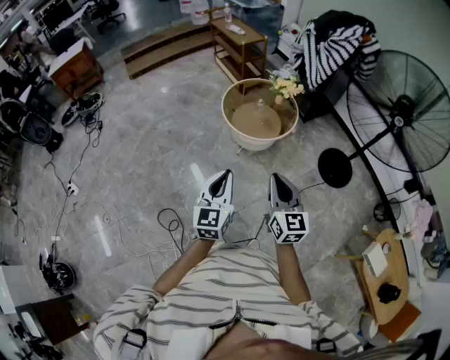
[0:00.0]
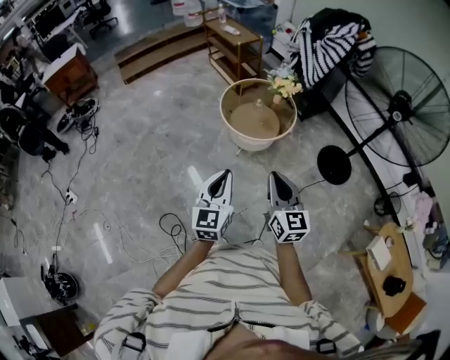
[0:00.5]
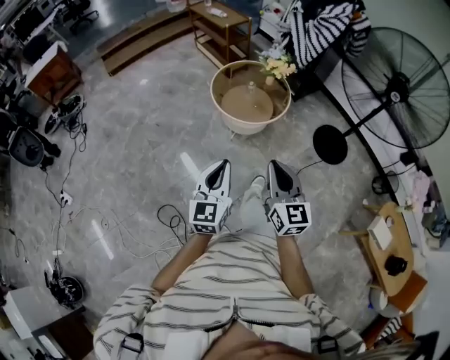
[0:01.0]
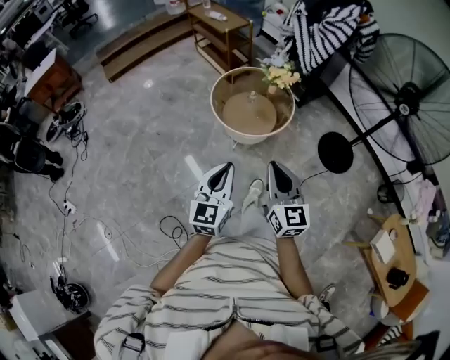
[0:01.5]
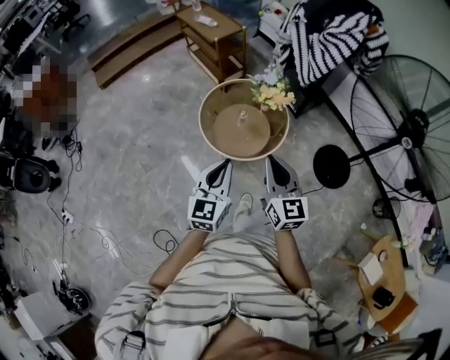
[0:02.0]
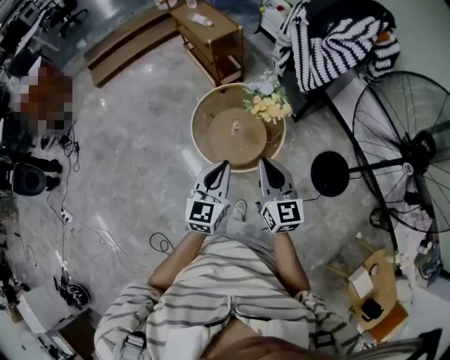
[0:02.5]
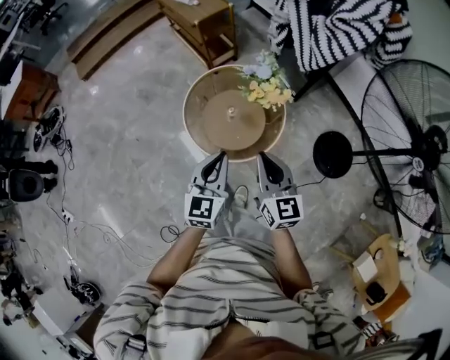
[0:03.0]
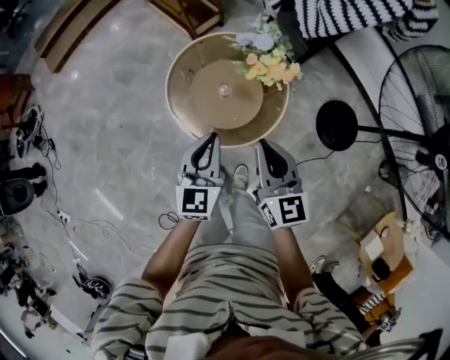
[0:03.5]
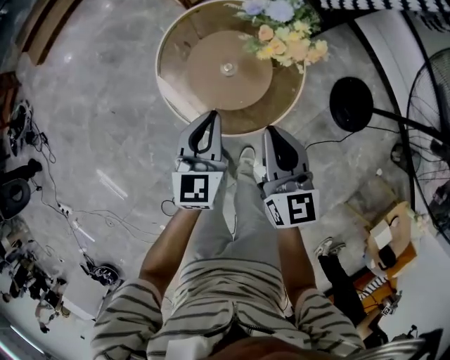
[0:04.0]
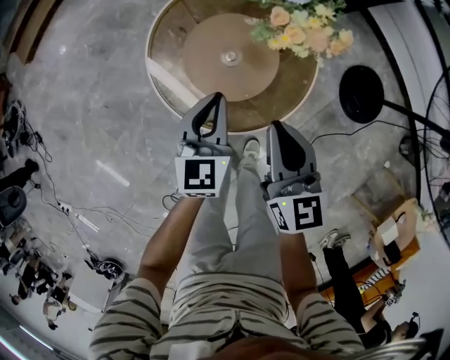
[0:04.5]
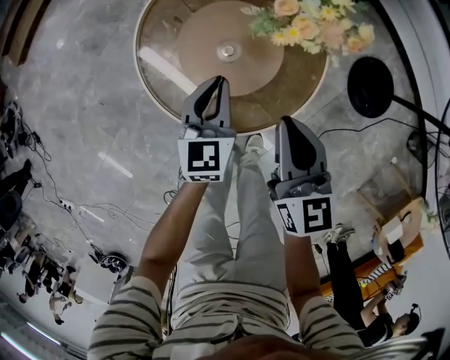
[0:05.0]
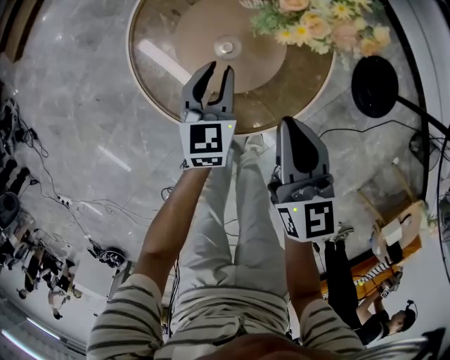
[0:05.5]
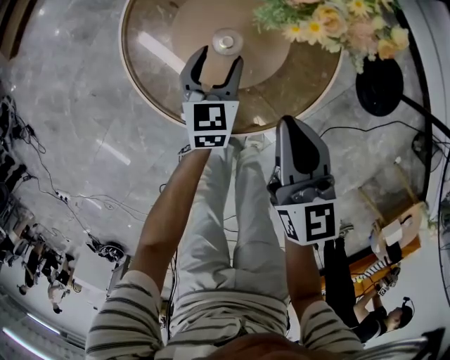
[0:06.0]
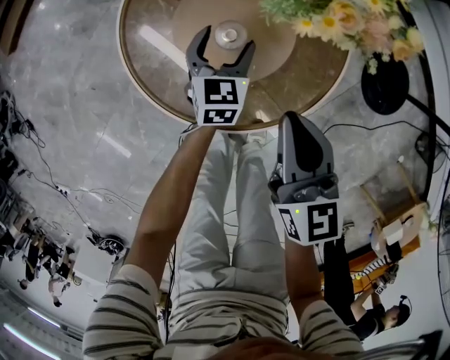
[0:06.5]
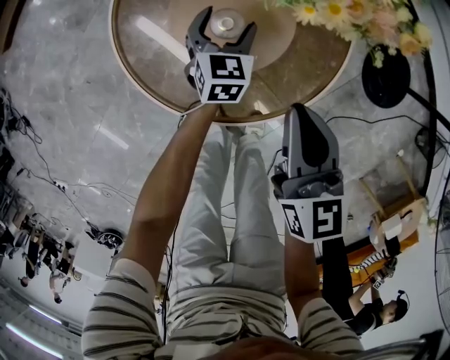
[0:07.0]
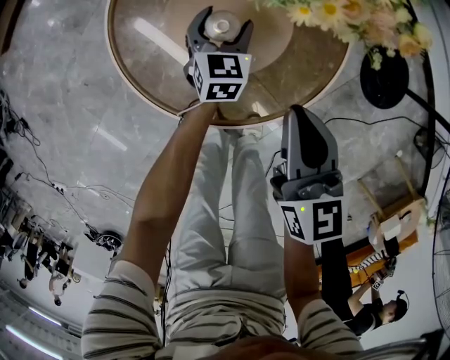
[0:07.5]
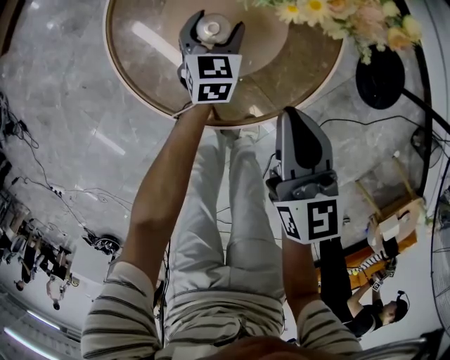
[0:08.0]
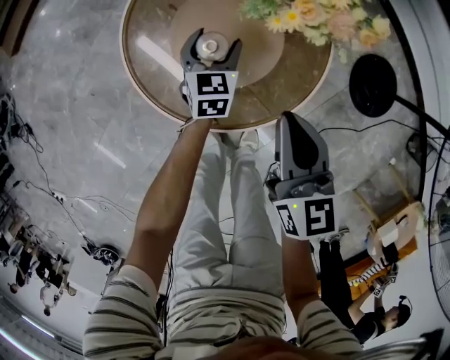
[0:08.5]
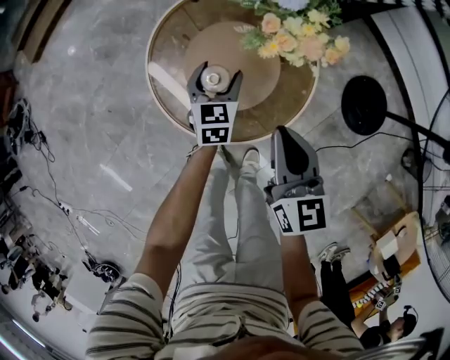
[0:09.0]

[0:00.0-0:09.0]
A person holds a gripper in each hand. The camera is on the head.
0:00.0 to 0:02.0: The two grippers go some 35 cm forward.
0:02.0 to 0:04.5: Both grippers travel together downward and forward, about 40 cm.
0:04.5 to 0:07.0: The left gripper goes about 30 cm downward and forward, and opens. Meanwhile the right gripper goes roughly 10 cm downward.
0:07.0 to 0:09.0: The two grippers go about 10 cm upward.

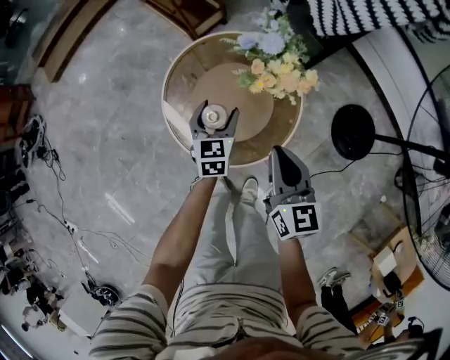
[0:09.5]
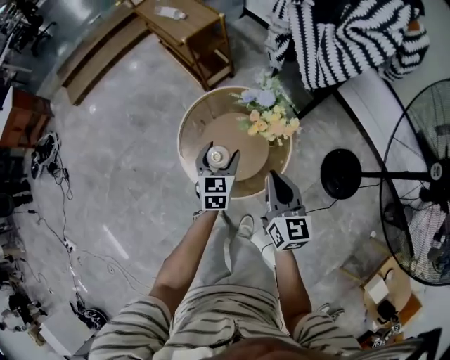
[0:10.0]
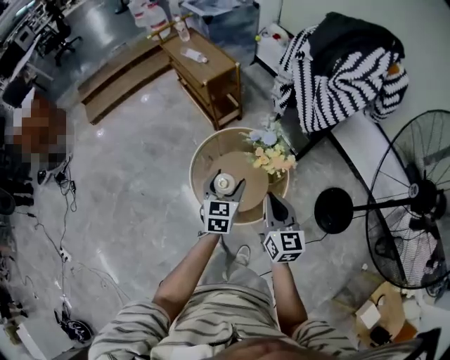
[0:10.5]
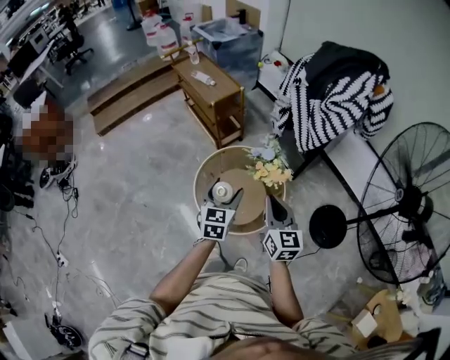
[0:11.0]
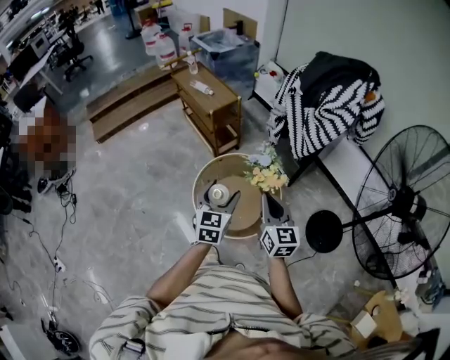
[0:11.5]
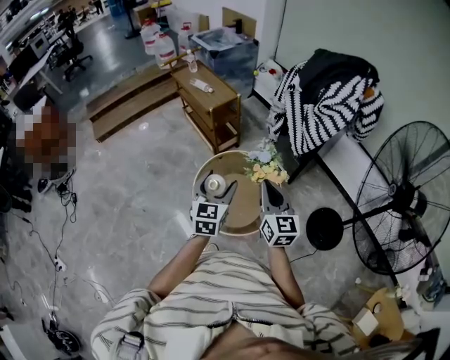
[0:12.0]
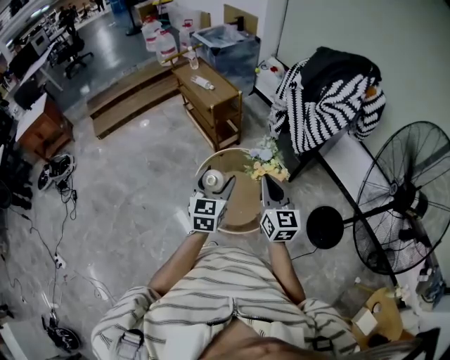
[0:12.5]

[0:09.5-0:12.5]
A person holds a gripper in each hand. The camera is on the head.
0:09.5 to 0:11.0: The two grippers go about 30 cm upward.
0:11.0 to 0:12.5: The two grippers go some 5 cm upward.

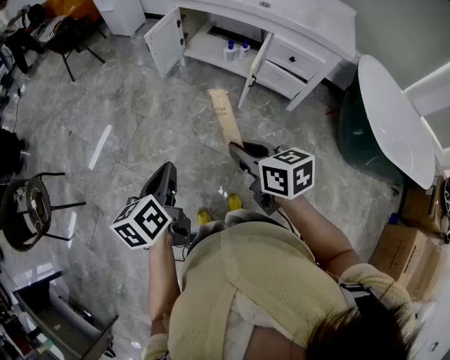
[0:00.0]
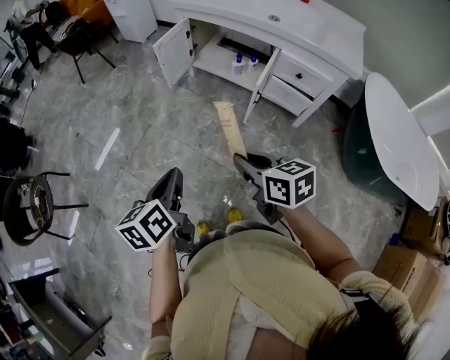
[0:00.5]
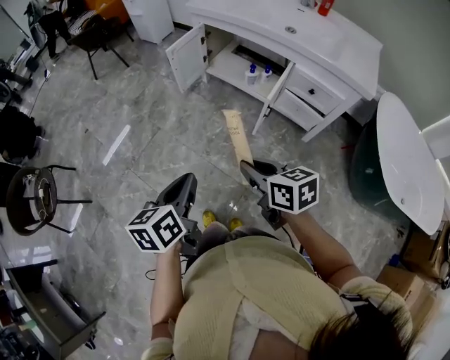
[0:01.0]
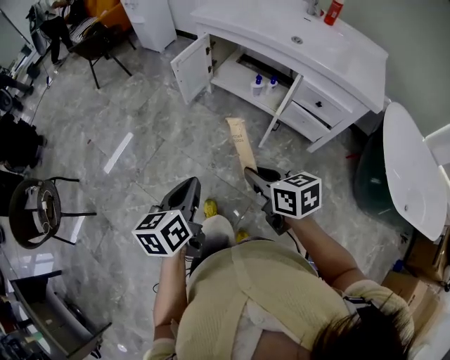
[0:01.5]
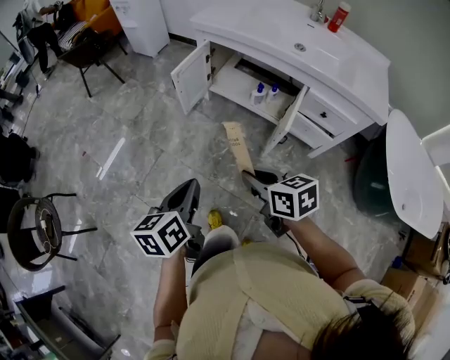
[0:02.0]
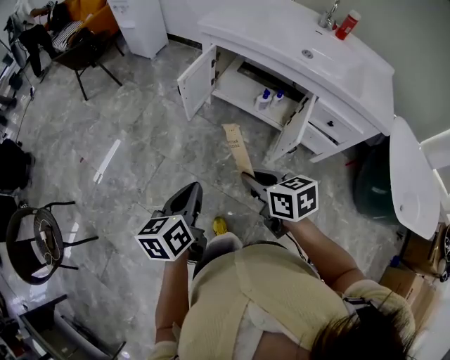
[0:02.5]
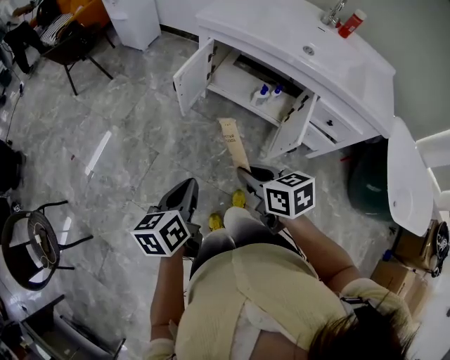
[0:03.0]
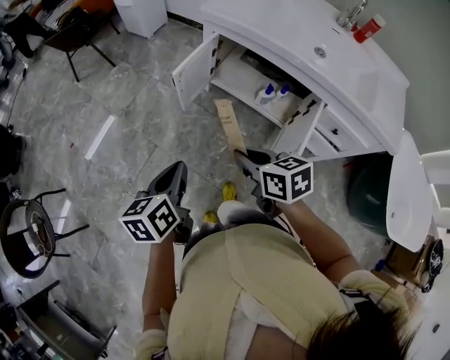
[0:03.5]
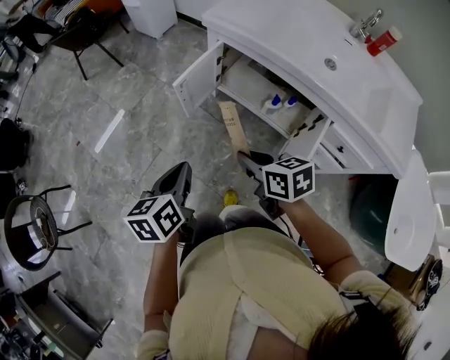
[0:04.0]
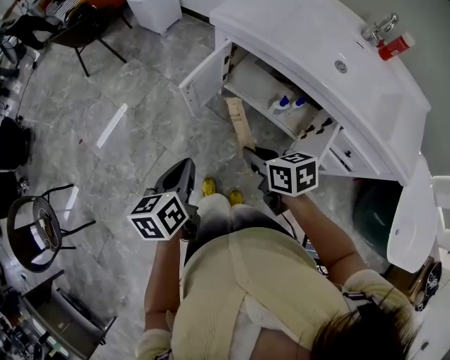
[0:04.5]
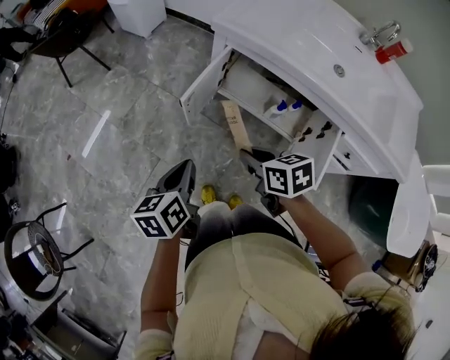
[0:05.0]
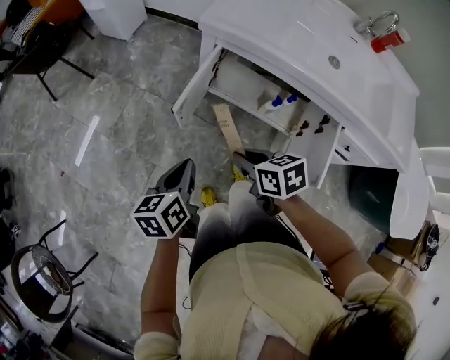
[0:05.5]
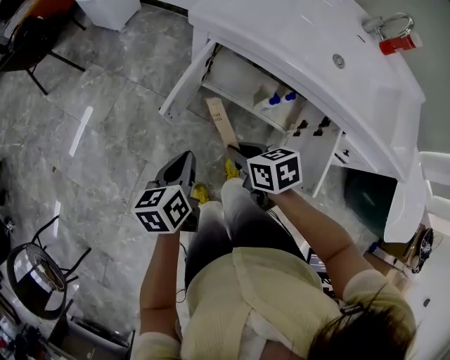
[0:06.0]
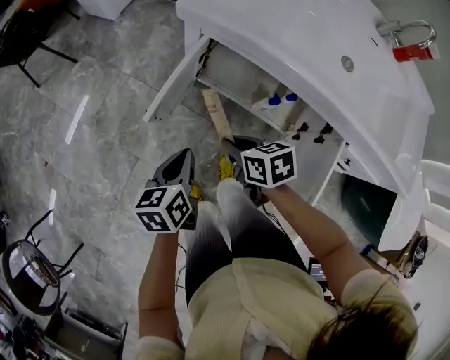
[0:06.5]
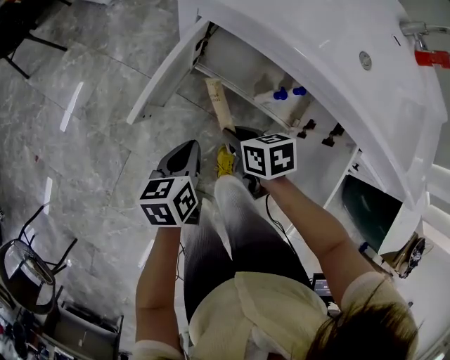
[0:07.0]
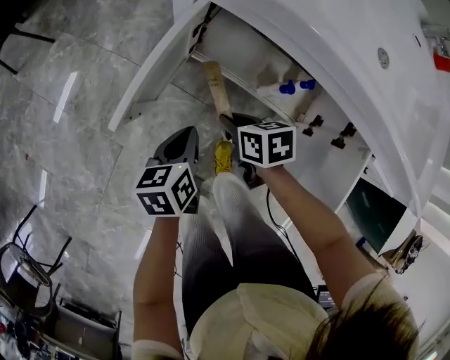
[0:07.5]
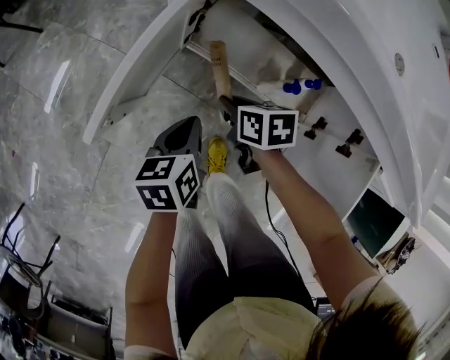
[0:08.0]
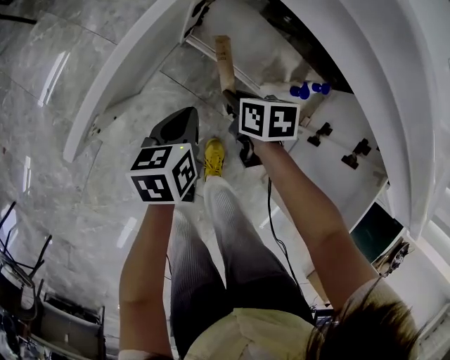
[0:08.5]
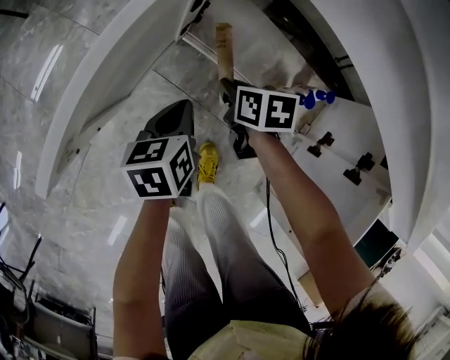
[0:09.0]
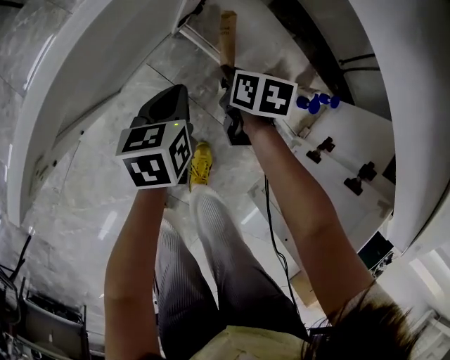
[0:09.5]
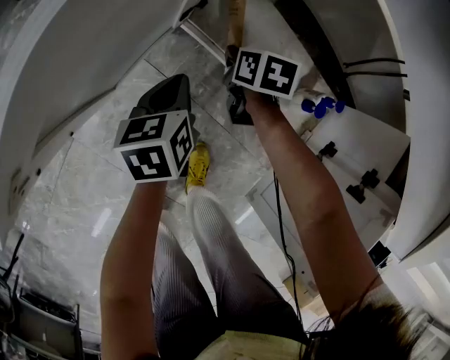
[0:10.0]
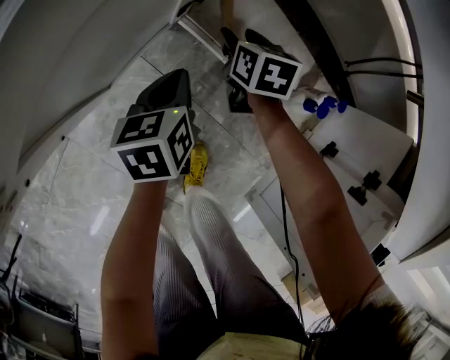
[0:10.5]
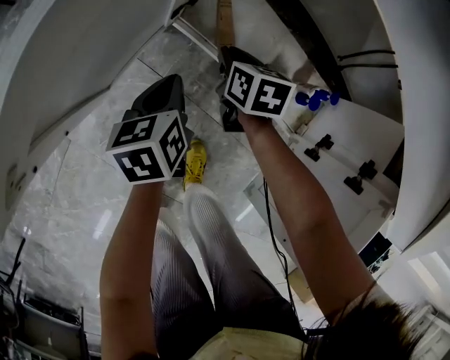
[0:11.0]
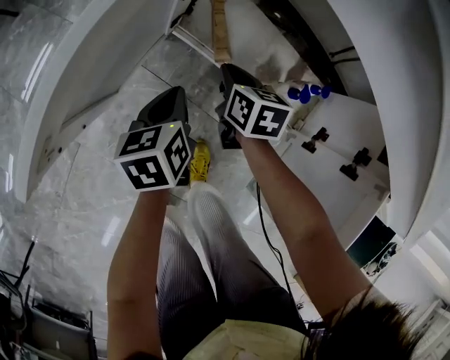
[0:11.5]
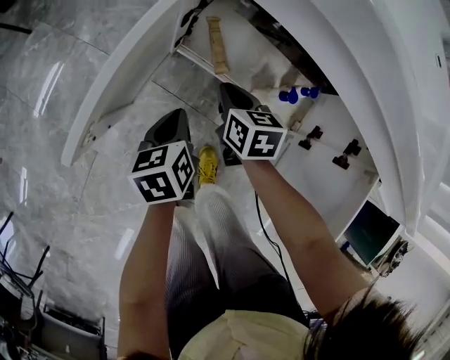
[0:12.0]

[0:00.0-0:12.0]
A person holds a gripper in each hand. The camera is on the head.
0:00.0 to 0:02.0: The two grippers go roughly 20 cm forward.
0:02.0 to 0:04.0: Both grippers move forward, some 25 cm.
0:04.0 to 0:06.0: Both grippers move forward and downward, some 20 cm.
0:06.0 to 0:08.0: The left gripper goes approximately 30 cm downward, to the right and forward; the right gripper heads downward and forward, covering about 30 cm.
0:08.0 to 0:10.0: The grippers both shift downward and forward by roughly 20 cm.
0:10.0 to 0:12.0: The right gripper goes some 15 cm upward and backward, and opens, then closes again. The left gripper shifts approximately 10 cm upward and backward.

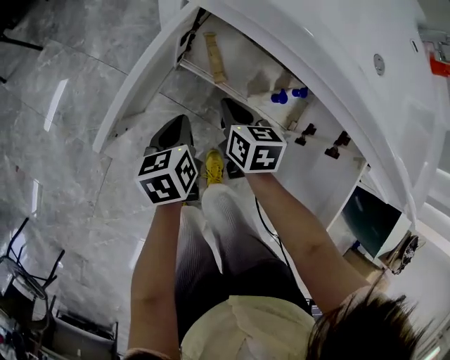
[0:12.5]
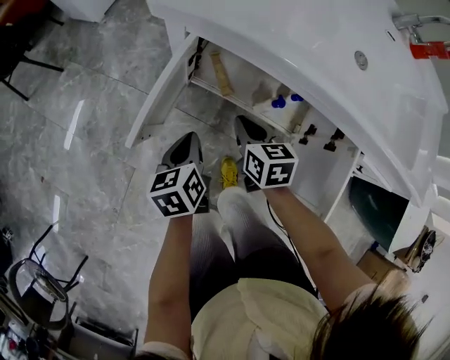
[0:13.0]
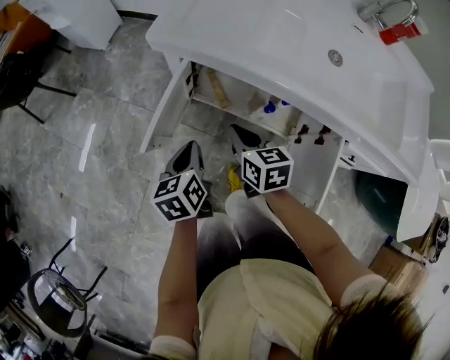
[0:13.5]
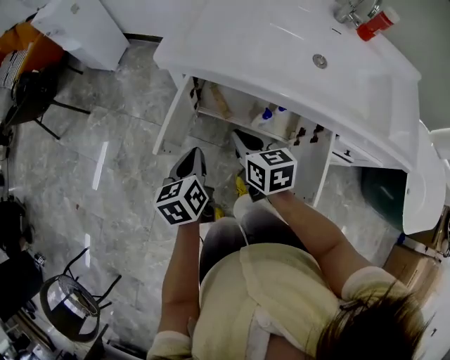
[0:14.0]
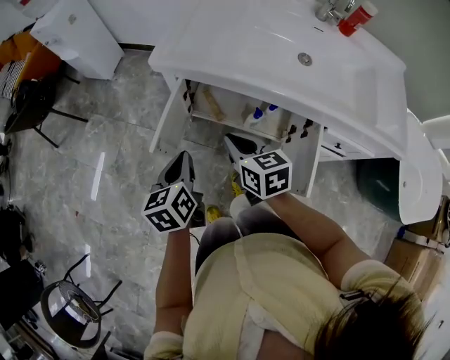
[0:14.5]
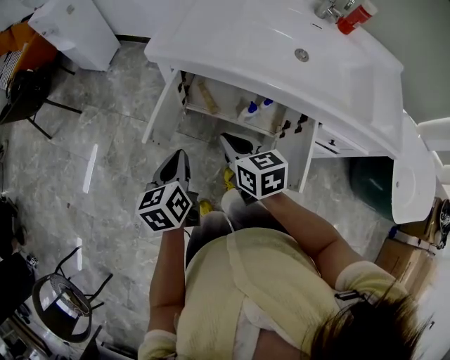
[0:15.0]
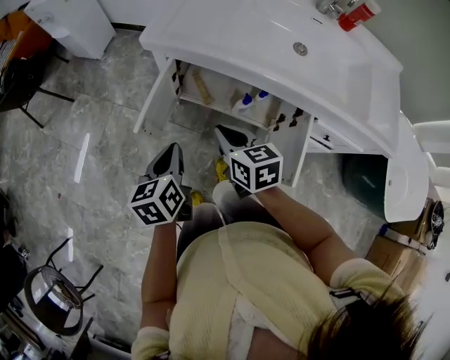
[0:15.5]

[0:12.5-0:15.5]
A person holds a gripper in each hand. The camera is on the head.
0:12.5 to 0:14.0: The two grippers go about 25 cm upward.
0:14.0 to 0:15.5: The two grippers go about 5 cm backward.
